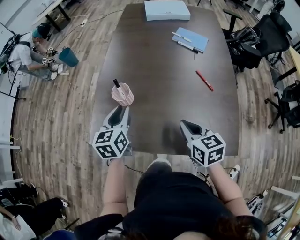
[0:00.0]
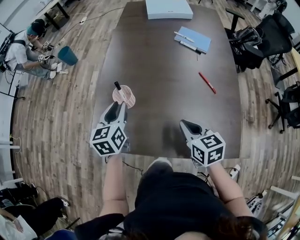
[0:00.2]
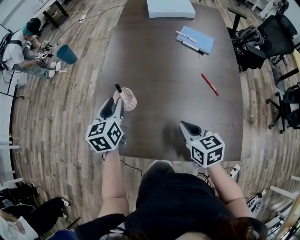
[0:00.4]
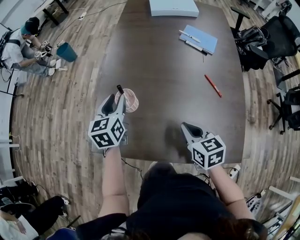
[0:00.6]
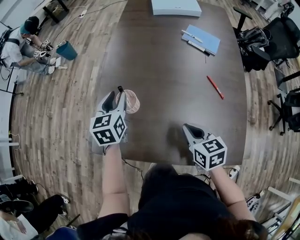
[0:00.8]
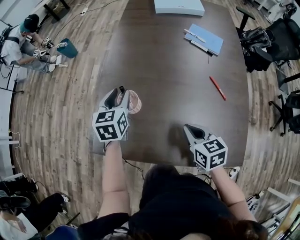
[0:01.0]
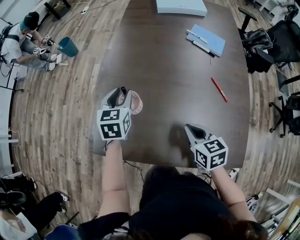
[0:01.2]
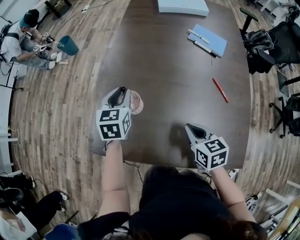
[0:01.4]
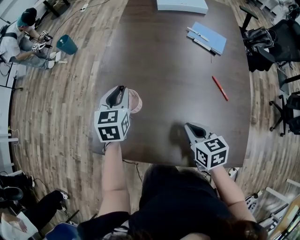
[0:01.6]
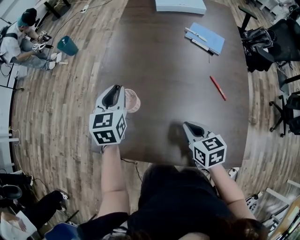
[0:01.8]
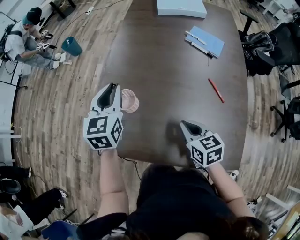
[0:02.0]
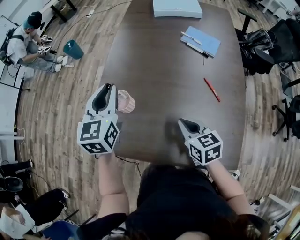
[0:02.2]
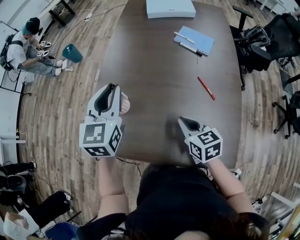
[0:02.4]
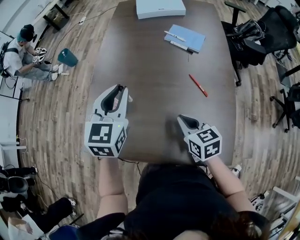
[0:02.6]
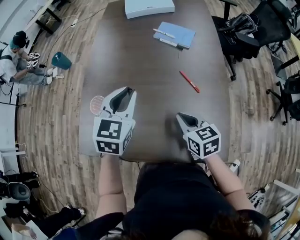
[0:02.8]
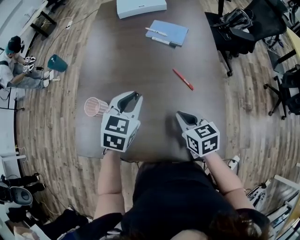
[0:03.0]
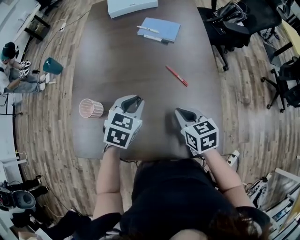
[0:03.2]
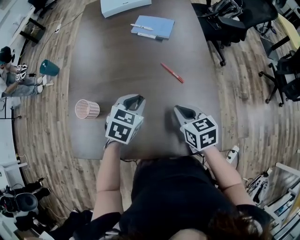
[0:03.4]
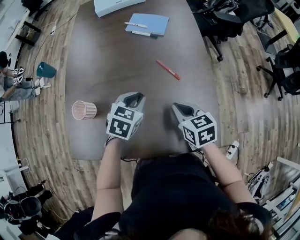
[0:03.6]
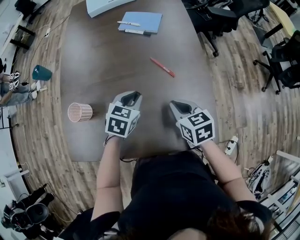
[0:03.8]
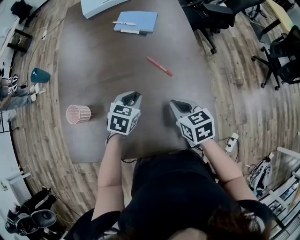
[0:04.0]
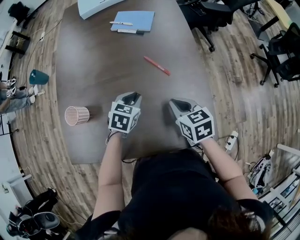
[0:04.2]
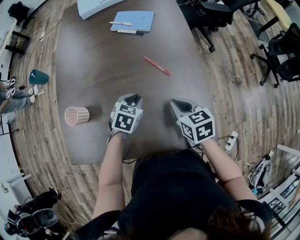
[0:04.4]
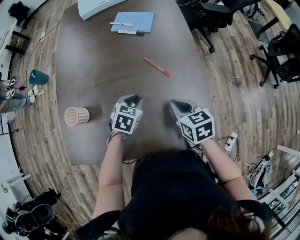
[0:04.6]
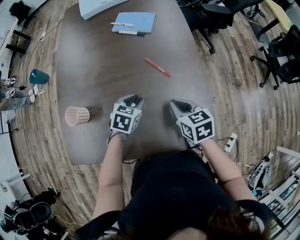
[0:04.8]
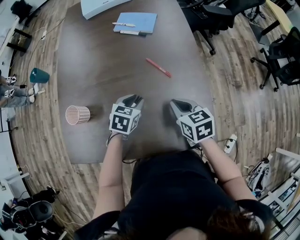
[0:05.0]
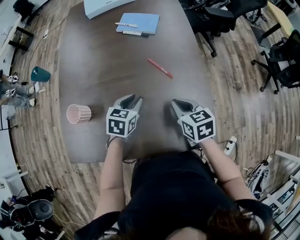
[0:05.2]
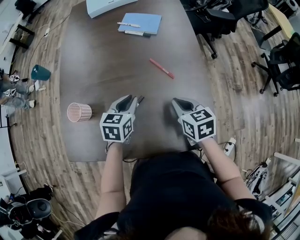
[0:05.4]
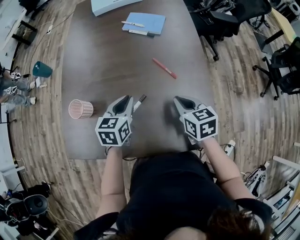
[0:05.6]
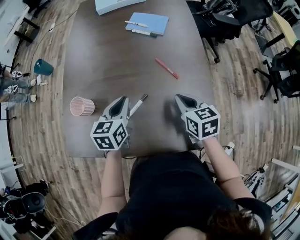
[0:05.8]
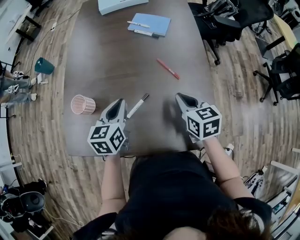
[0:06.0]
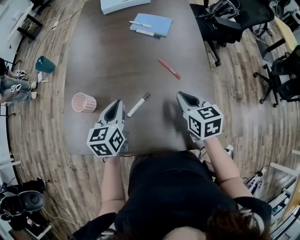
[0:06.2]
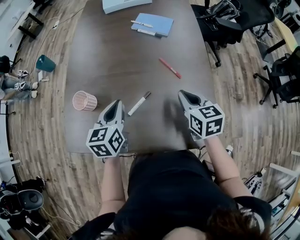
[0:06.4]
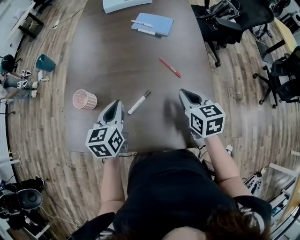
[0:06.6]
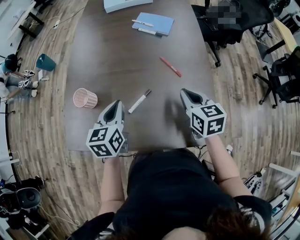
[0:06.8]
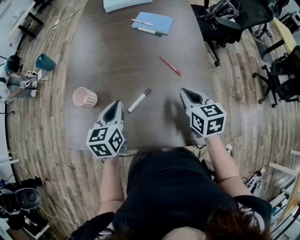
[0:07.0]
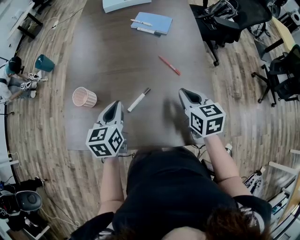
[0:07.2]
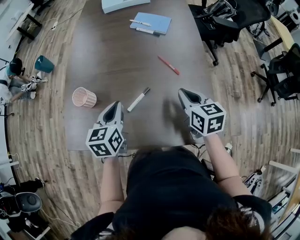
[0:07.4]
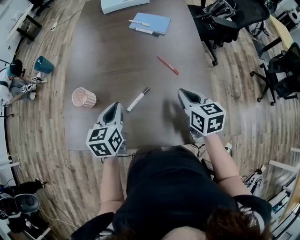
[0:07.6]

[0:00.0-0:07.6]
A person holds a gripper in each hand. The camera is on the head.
0:00.0 to 0:01.6: The left gripper heads forward, covering approximately 15 cm; the right gripper travels forward and downward by roughly 10 cm.
0:01.6 to 0:03.0: The left gripper goes roughly 25 cm to the right and backward, and changes its angle by approximately 30 degrees. The right gripper goes about 15 cm to the right.
0:03.0 to 0:04.6: The left gripper goes about 20 cm downward and to the right, and changes its angle by roughly 20 degrees; the right gripper shifts approximately 5 cm to the right.
0:04.6 to 0:06.0: The left gripper goes roughly 15 cm upward and to the left, and turns by roughly 40 degrees, while the right gripper changes place by roughly 5 cm.
0:06.0 to 0:07.6: The left gripper ends up roughly 5 cm from where it was.

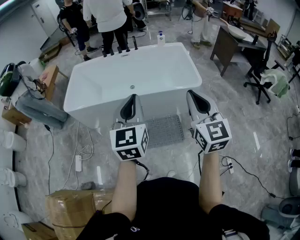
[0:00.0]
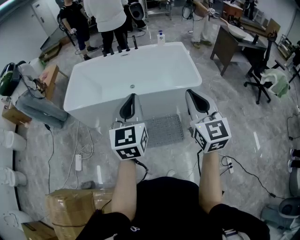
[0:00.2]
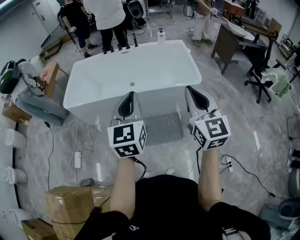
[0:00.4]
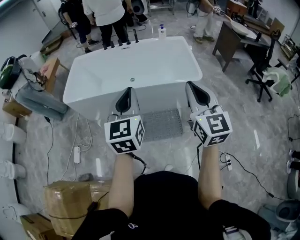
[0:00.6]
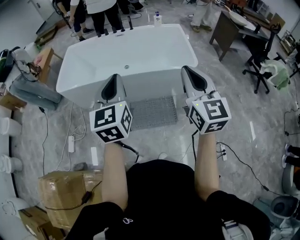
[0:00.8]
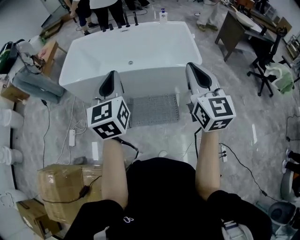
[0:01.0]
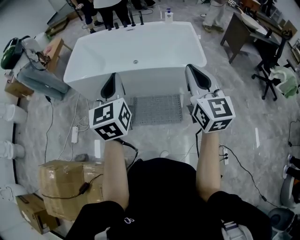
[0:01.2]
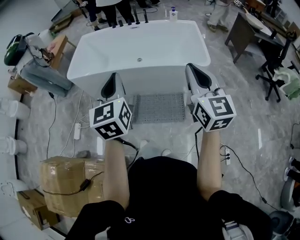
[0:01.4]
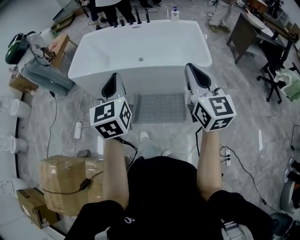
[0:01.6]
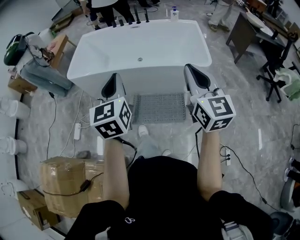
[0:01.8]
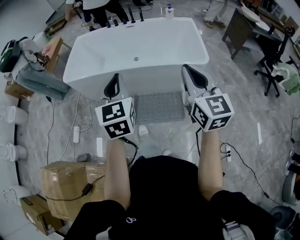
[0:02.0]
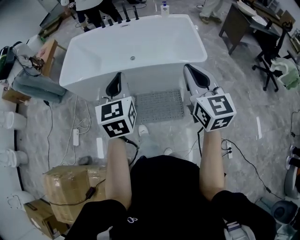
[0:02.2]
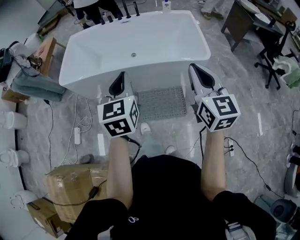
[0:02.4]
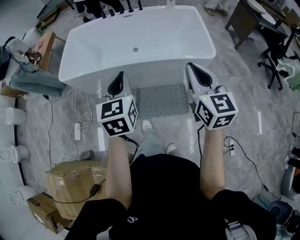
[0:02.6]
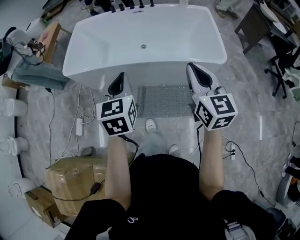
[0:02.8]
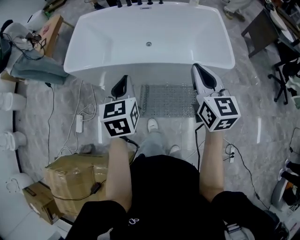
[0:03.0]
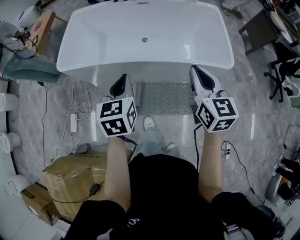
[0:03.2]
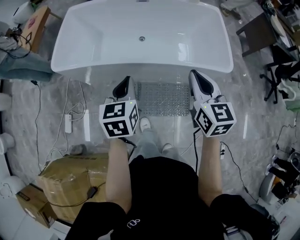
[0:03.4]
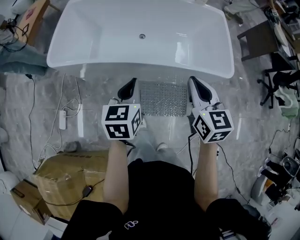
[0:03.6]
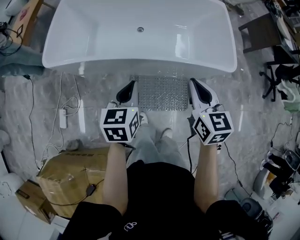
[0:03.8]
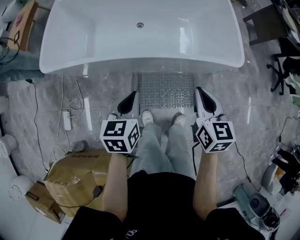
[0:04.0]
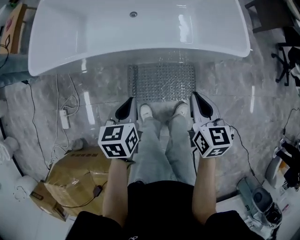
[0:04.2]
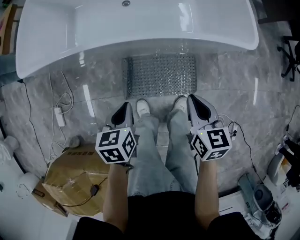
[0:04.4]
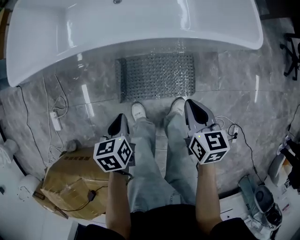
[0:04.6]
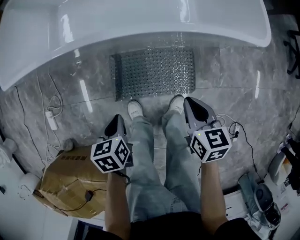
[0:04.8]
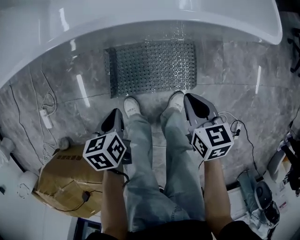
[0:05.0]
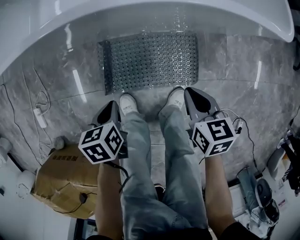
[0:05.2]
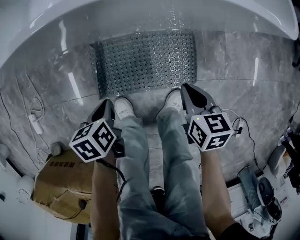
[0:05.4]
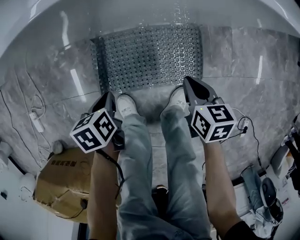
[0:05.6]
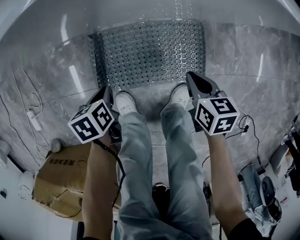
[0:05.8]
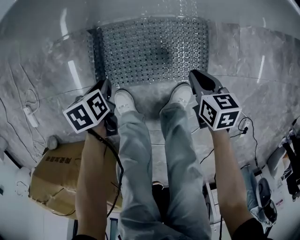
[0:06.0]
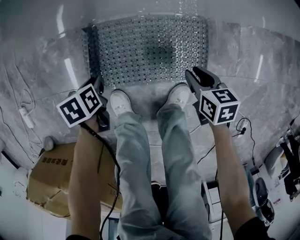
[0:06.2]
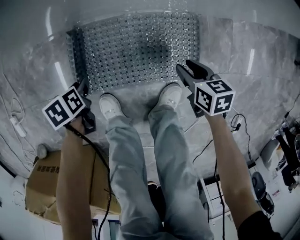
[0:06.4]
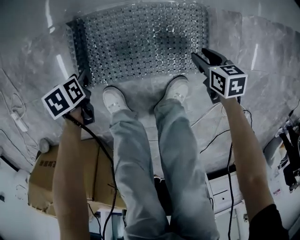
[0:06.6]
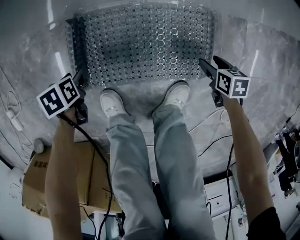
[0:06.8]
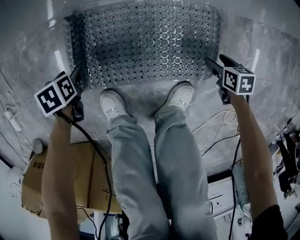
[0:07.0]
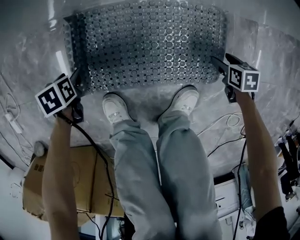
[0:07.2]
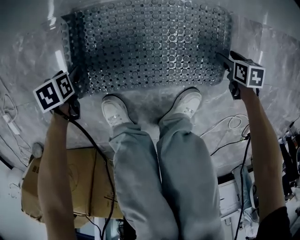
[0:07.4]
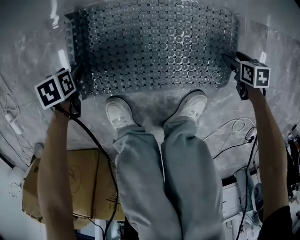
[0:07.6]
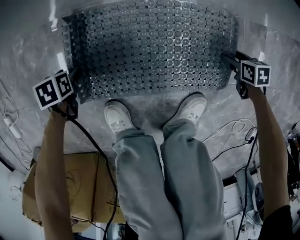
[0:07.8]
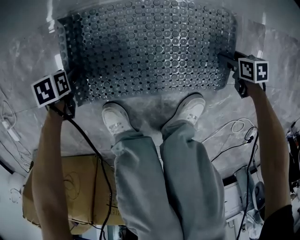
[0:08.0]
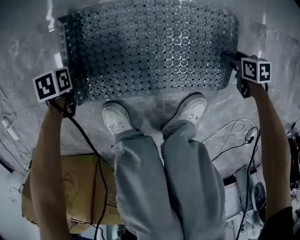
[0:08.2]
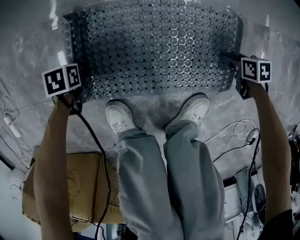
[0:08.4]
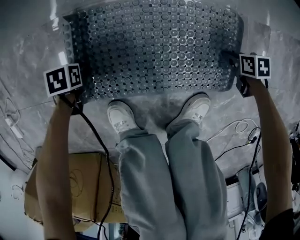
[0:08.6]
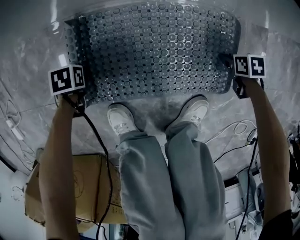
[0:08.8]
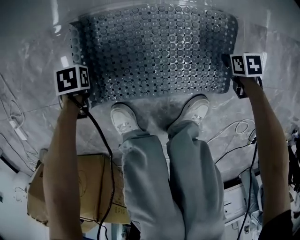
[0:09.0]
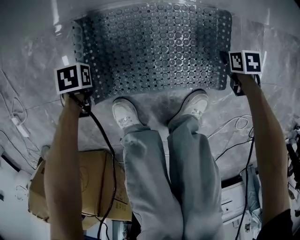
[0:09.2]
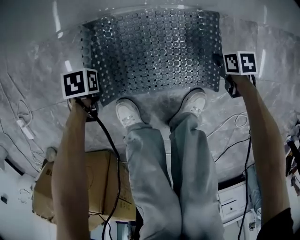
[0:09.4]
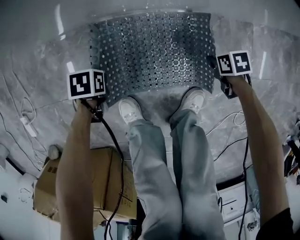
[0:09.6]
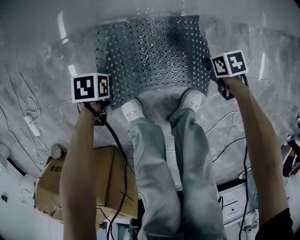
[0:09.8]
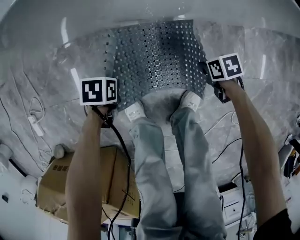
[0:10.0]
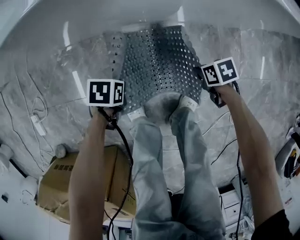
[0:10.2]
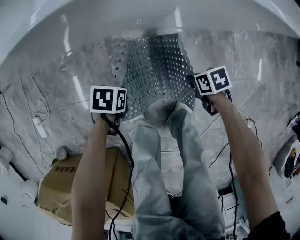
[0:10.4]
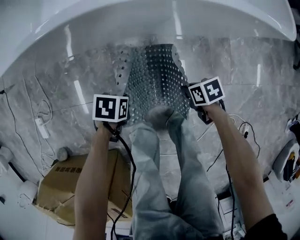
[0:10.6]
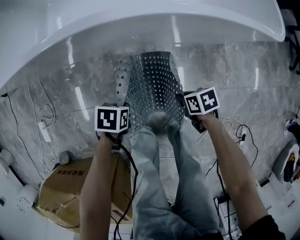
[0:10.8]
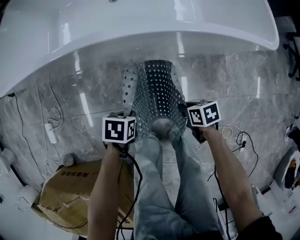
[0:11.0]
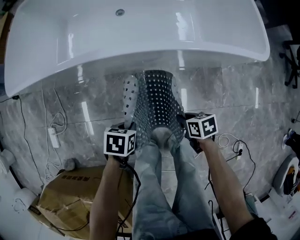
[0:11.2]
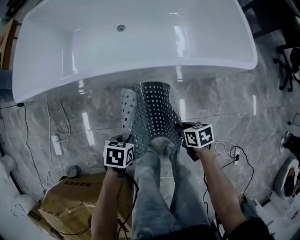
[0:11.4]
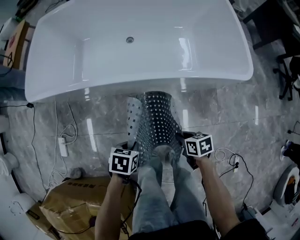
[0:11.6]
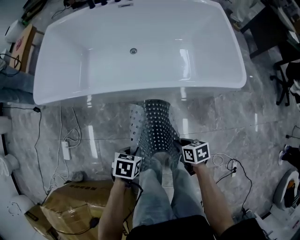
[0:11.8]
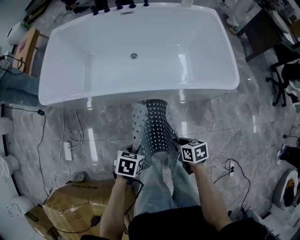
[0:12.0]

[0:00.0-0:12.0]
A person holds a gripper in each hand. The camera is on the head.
0:00.0 to 0:01.6: The left gripper shifts by roughly 5 cm.
0:01.6 to 0:03.0: The two grippers go roughly 25 cm forward and downward.
0:03.0 to 0:04.4: The two grippers go approximately 35 cm downward. The left gripper changes its angle by roughly 30 degrees. Meanwhile the right gripper changes its angle by about 30 degrees.
0:04.4 to 0:06.0: The grippers both shift downward by roughly 40 cm. The left gripper changes its angle by about 20 degrees. The right gripper turns by some 20 degrees.
0:06.0 to 0:07.6: Both grippers move downward, roughly 25 cm. The right gripper changes its angle by roughly 20 degrees, and opens; the left gripper opens.
0:07.6 to 0:09.0: The left gripper closes its fingers, while the right gripper closes up.
0:09.0 to 0:10.4: The two grippers go some 25 cm upward. The left gripper rotates about 20 degrees.
0:10.4 to 0:12.0: Both grippers travel together upward, some 40 cm. The right gripper turns by some 20 degrees. The left gripper changes its angle by some 20 degrees.

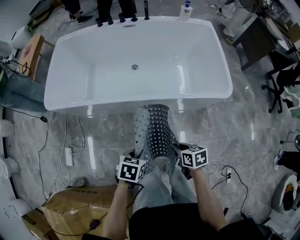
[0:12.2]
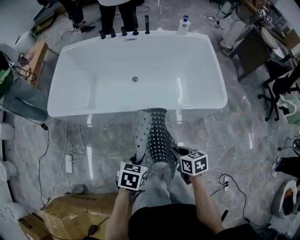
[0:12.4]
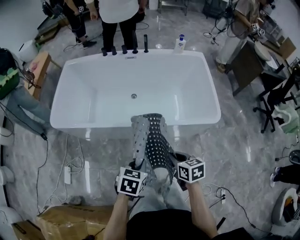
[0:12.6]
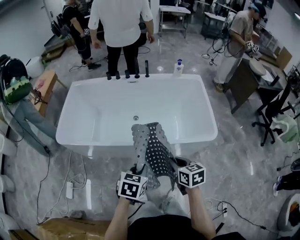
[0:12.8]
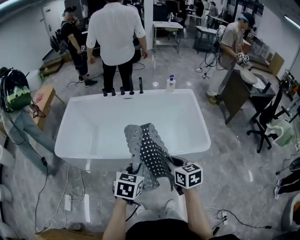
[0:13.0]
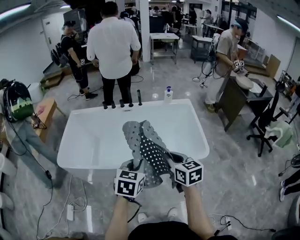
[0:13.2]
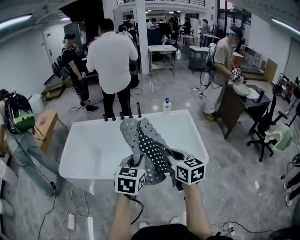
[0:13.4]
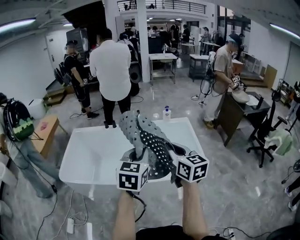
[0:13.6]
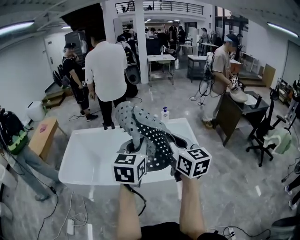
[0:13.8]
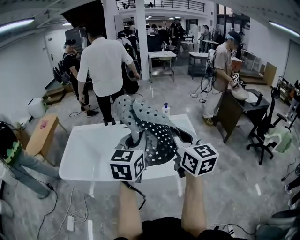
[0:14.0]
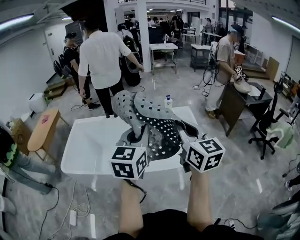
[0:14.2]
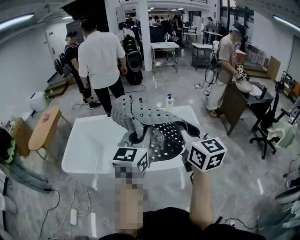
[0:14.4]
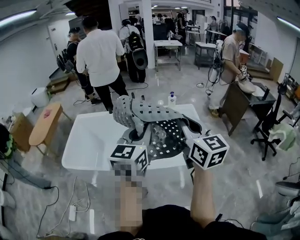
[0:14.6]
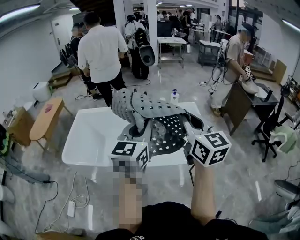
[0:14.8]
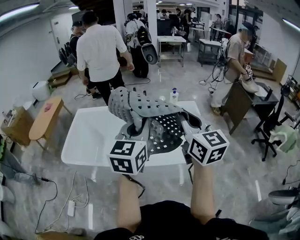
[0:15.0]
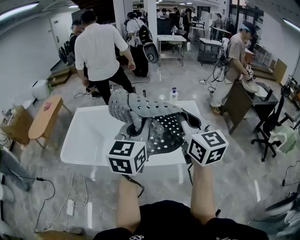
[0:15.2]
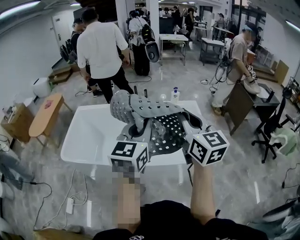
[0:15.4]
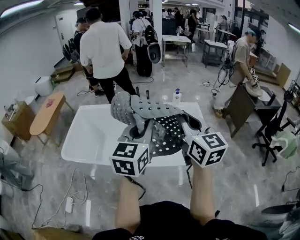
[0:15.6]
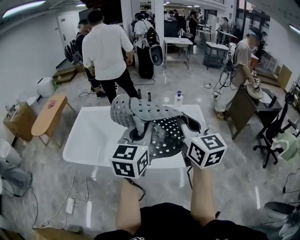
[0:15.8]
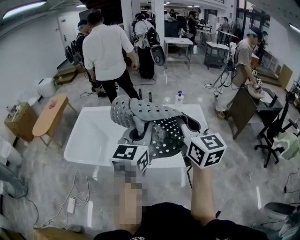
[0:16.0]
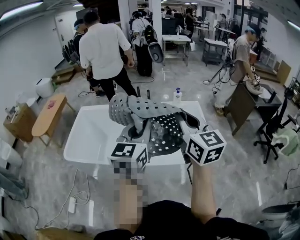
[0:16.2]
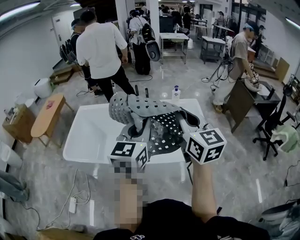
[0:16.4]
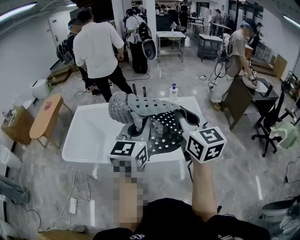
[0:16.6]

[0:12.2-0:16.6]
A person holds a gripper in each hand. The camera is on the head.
0:12.2 to 0:13.6: The right gripper is displaced upward by approximately 50 cm, and tips its fingers upward by roughly 40 degrees. Meanwhile the left gripper travels upward and forward by some 50 cm, and tips its fingers upward by some 50 degrees.
0:13.6 to 0:15.2: The grippers both shift upward by approximately 5 cm.
0:15.2 to 0:16.6: There are only small adjustments of the grippers.
